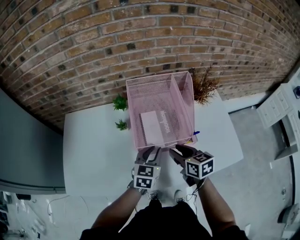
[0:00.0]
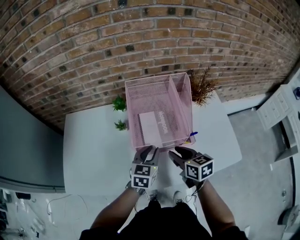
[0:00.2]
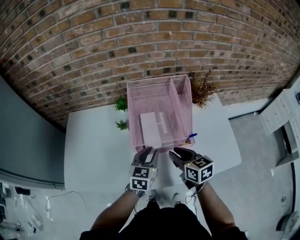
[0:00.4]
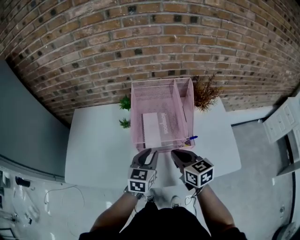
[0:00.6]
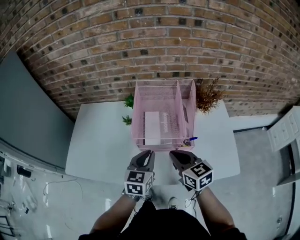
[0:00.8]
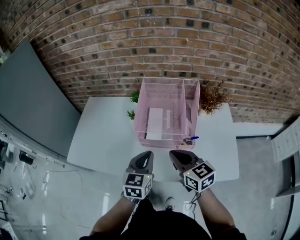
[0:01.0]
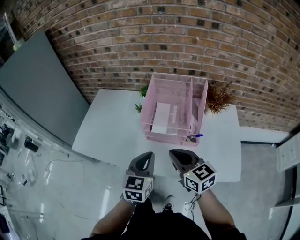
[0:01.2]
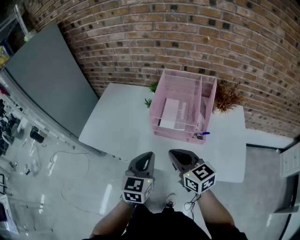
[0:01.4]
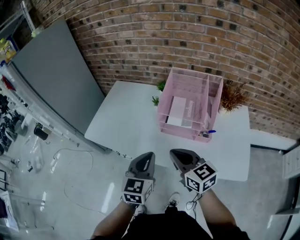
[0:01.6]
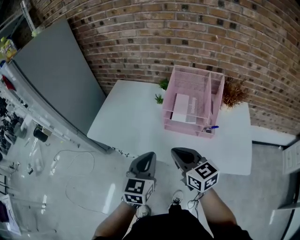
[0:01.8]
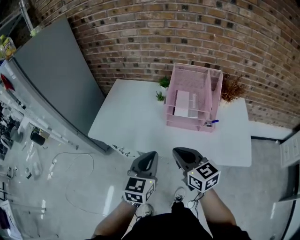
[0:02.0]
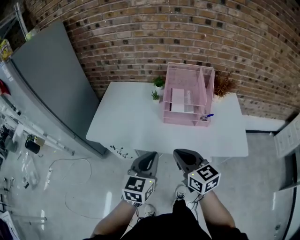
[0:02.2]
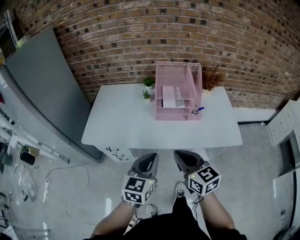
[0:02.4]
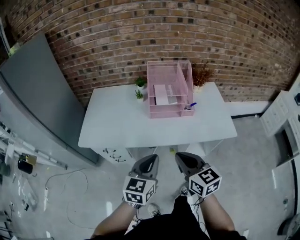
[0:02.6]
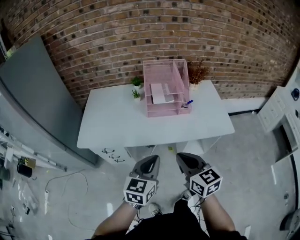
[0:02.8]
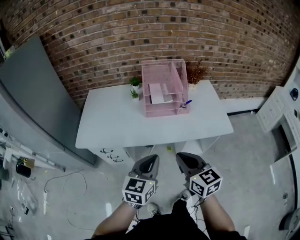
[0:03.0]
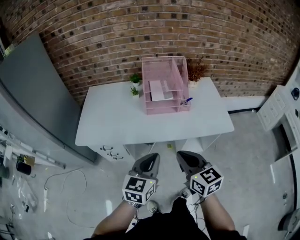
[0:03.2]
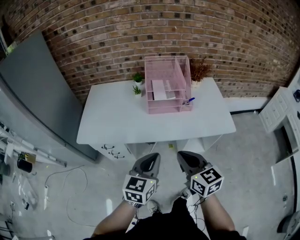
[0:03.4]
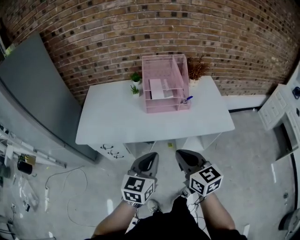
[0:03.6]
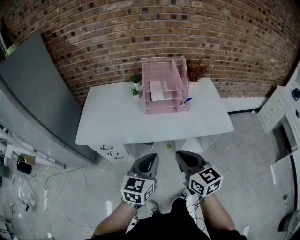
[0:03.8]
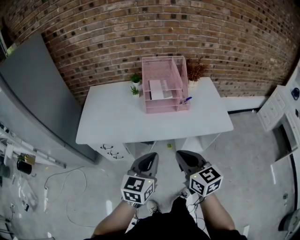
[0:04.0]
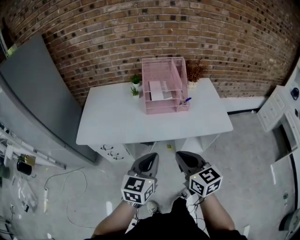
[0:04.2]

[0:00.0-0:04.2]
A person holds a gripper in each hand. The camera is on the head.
0:00.0 to 0:01.4: The right gripper moves approximately 15 cm, swivels some 40 degrees, and closes its fingers; the left gripper shifts by approximately 20 cm, swivels about 30 degrees, and closes its fingers.
0:01.4 to 0:02.8: The left gripper moves some 20 cm, and rotates some 30 degrees. Meanwhile the right gripper moves some 20 cm, and turns by roughly 30 degrees.
0:02.8 to 0:04.2: The grippers move only a little.

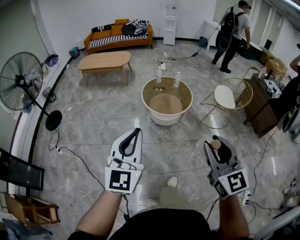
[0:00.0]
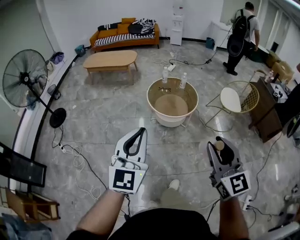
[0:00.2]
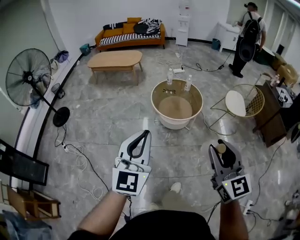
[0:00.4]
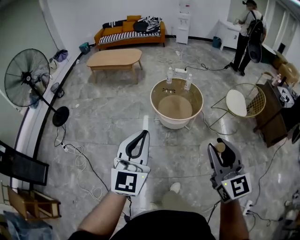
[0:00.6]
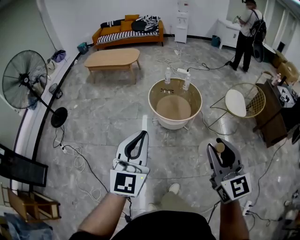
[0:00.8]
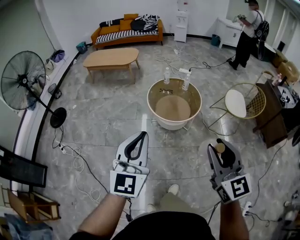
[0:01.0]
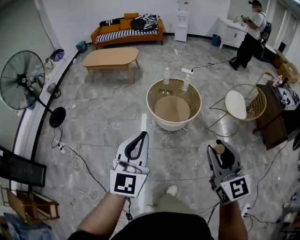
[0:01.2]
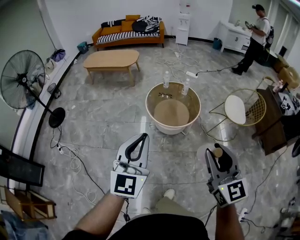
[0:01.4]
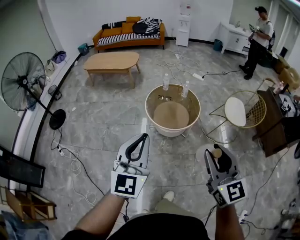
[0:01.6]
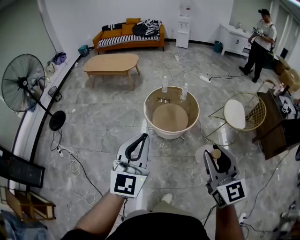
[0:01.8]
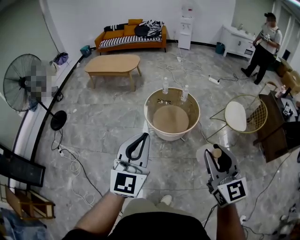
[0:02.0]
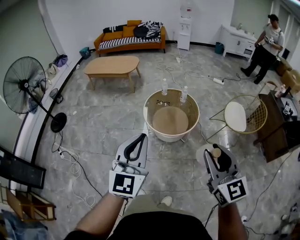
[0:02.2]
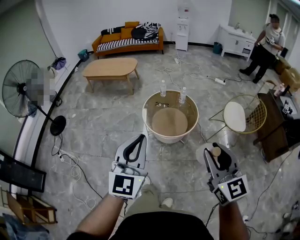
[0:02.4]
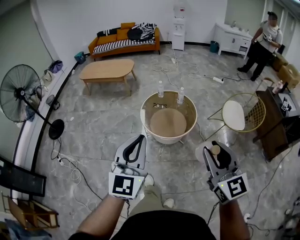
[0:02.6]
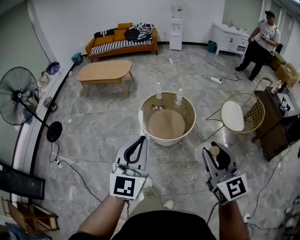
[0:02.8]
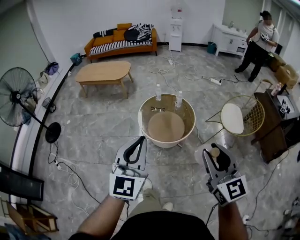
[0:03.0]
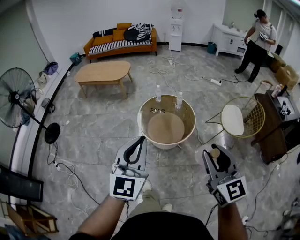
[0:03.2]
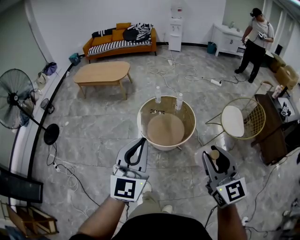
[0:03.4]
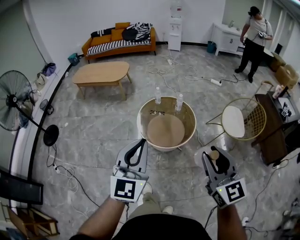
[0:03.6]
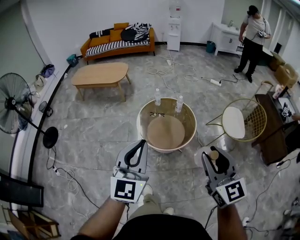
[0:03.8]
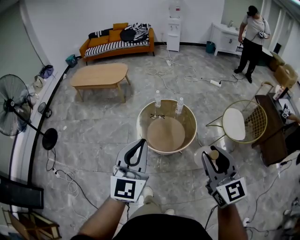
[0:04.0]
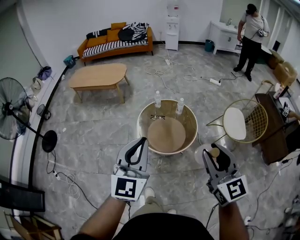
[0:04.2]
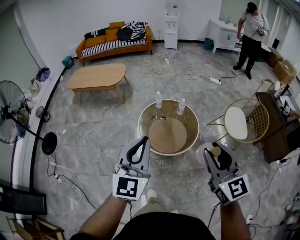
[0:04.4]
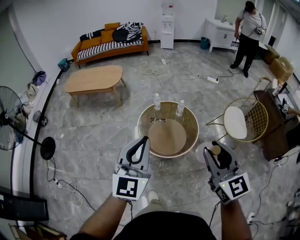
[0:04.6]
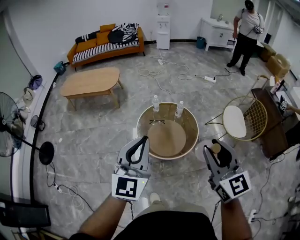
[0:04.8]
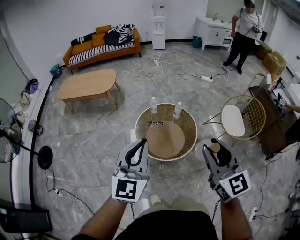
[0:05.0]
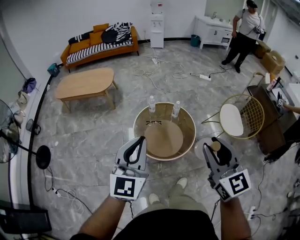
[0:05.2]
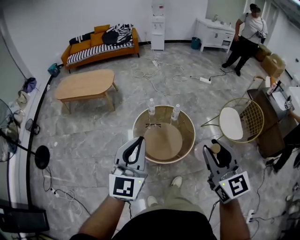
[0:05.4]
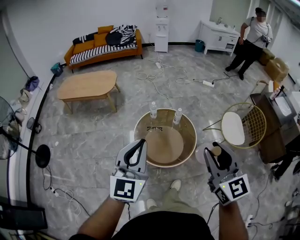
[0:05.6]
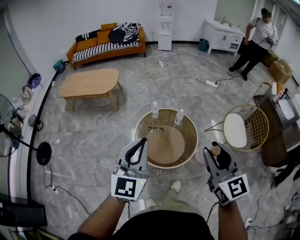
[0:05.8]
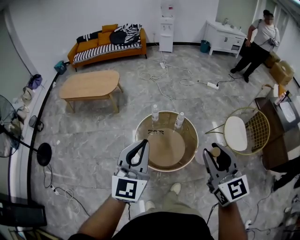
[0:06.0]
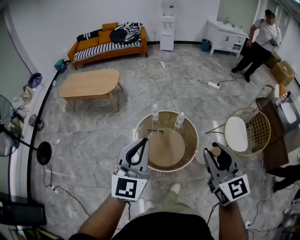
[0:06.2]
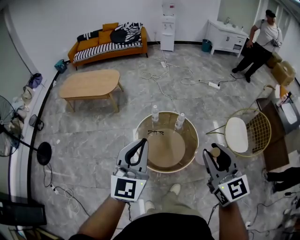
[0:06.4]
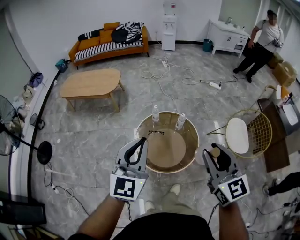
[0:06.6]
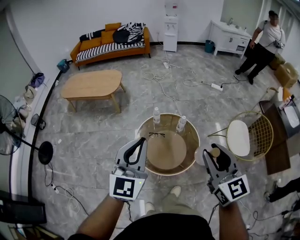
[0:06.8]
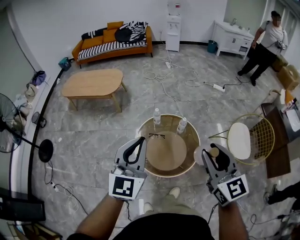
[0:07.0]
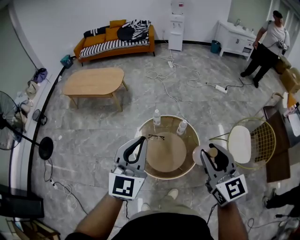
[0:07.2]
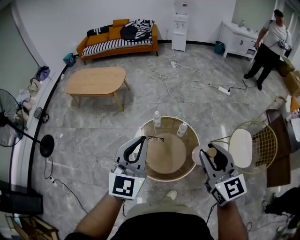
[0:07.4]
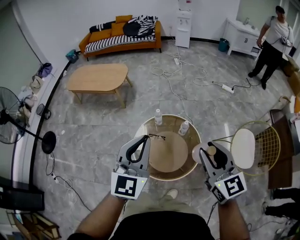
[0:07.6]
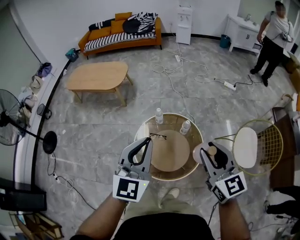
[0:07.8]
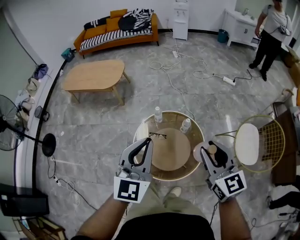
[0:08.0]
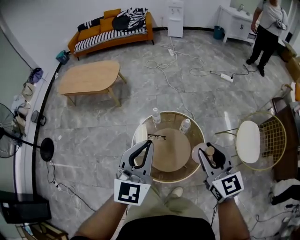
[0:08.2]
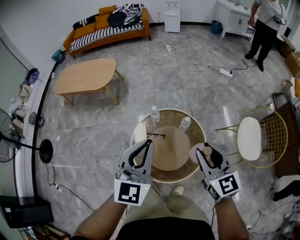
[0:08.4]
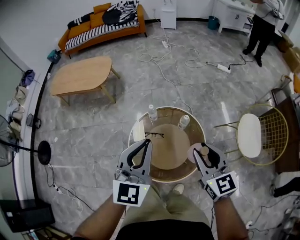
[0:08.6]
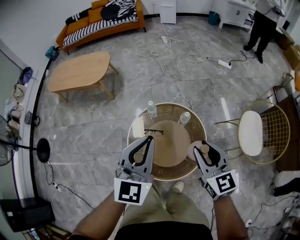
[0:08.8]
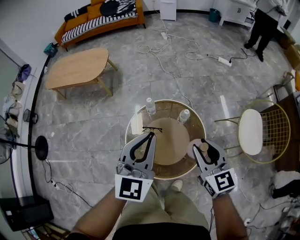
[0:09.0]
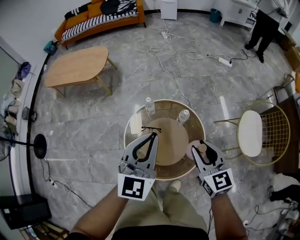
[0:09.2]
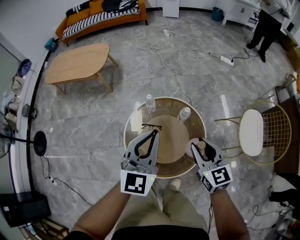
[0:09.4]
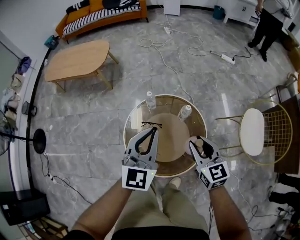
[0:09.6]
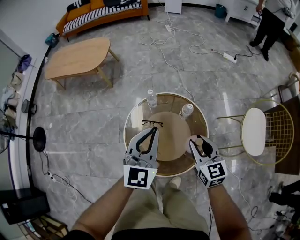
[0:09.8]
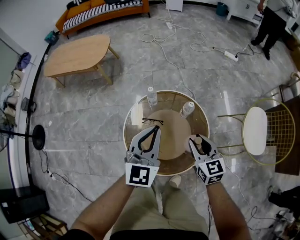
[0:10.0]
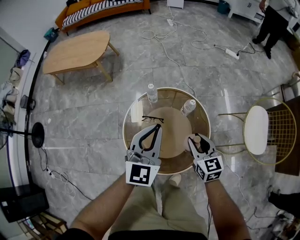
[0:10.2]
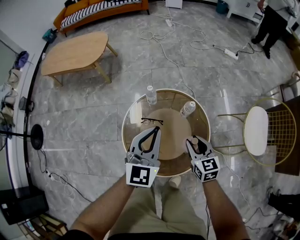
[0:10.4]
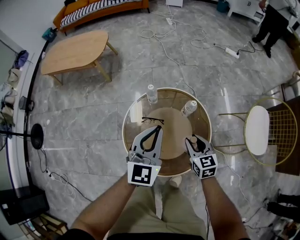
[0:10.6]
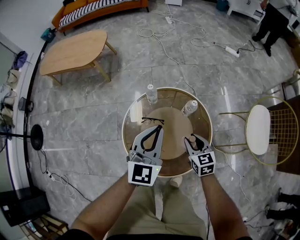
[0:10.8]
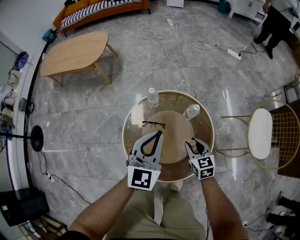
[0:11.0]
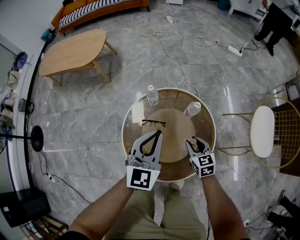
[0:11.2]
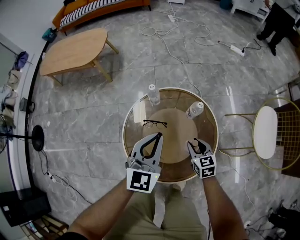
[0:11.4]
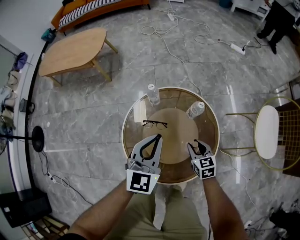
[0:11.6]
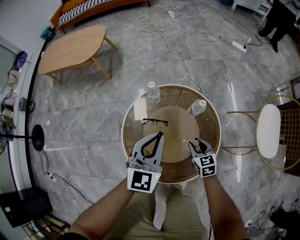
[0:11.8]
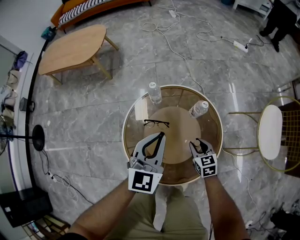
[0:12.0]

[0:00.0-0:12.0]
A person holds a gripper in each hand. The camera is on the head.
0:00.0 to 0:01.6: The right gripper goes approximately 15 cm forward, while the left gripper is displaced forward and to the right by about 20 cm.
0:01.6 to 0:03.0: The two grippers go some 10 cm forward and to the right.
0:03.0 to 0:04.4: Both grippers travel together forward, some 15 cm.
0:04.4 to 0:06.0: Both grippers move forward, roughly 15 cm.
0:06.0 to 0:07.6: The left gripper shifts some 15 cm forward and to the right. Meanwhile the right gripper travels forward, downward and to the right by about 15 cm.
0:07.6 to 0:09.0: Both grippers move downward and forward, roughly 20 cm.
0:09.0 to 0:10.4: The grippers both shift downward by roughly 20 cm.
0:10.4 to 0:12.0: The right gripper travels downward by roughly 20 cm. The left gripper goes roughly 10 cm downward.

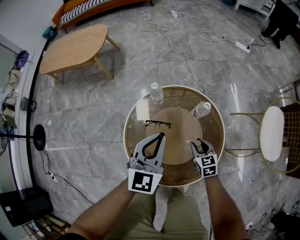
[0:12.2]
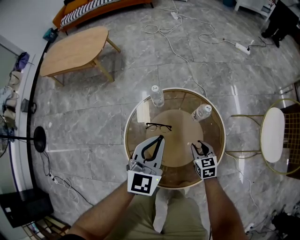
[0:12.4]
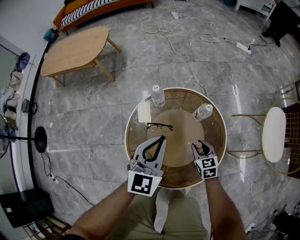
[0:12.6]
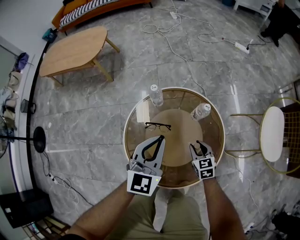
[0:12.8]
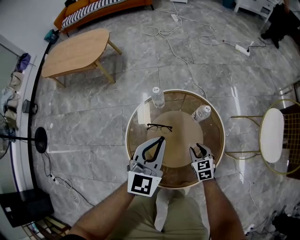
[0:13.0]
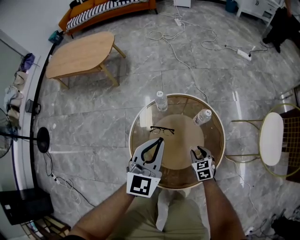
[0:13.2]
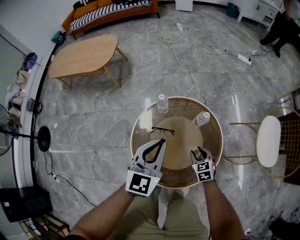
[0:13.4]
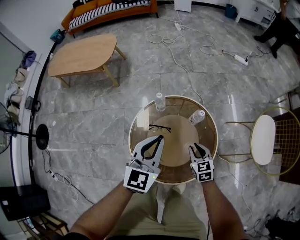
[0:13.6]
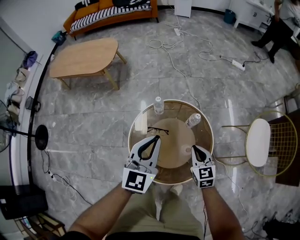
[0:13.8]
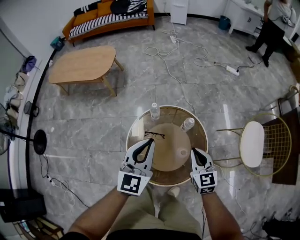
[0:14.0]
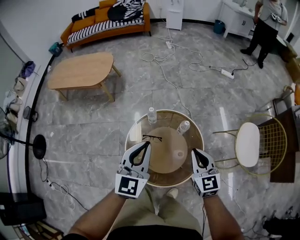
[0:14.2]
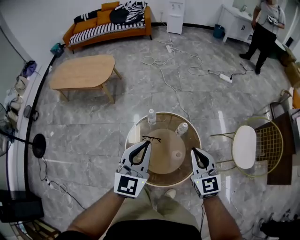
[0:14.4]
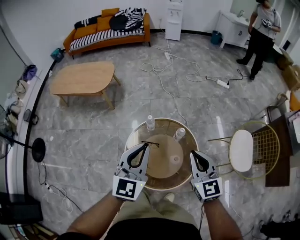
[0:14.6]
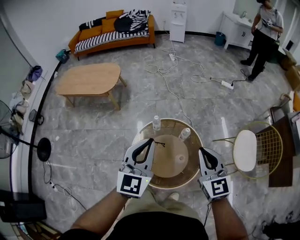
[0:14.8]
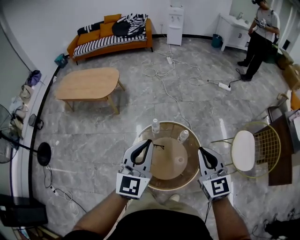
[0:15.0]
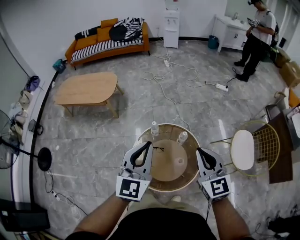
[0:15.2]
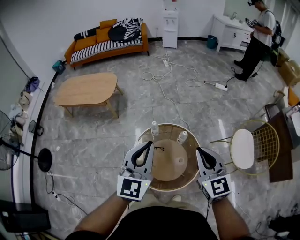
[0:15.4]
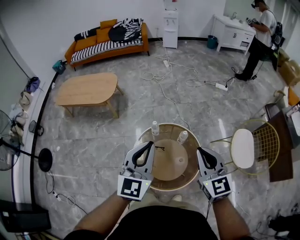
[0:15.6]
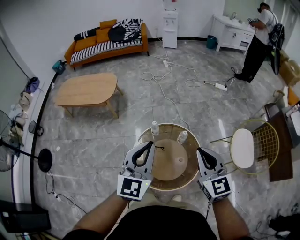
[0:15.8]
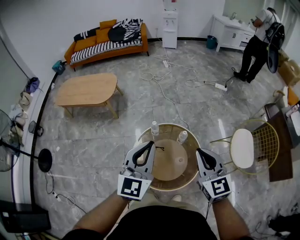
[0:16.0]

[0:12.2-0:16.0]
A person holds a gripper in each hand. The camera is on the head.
0:12.2 to 0:13.4: The left gripper shifts about 5 cm upward.
0:13.4 to 0:14.8: The right gripper heads upward, covering some 50 cm, angles its fingers upward, by roughly 30 degrees, and closes up; the left gripper moves upward, roughly 25 cm.
0:14.8 to 0:16.0: Both grippers move upward, roughly 5 cm.

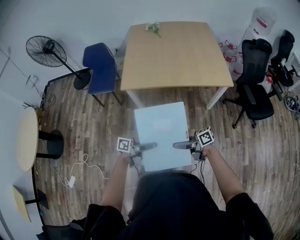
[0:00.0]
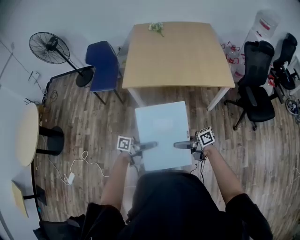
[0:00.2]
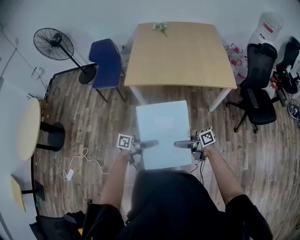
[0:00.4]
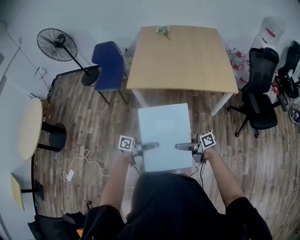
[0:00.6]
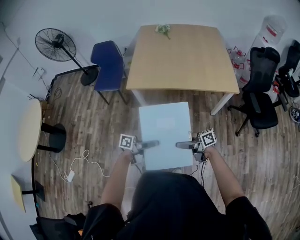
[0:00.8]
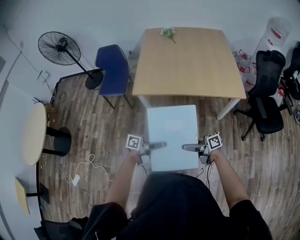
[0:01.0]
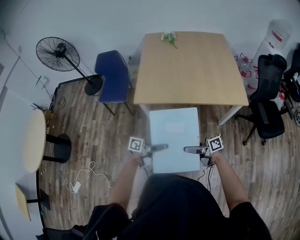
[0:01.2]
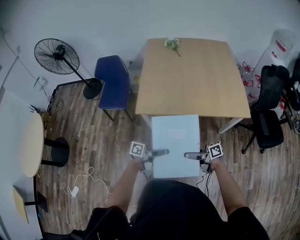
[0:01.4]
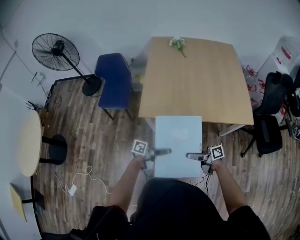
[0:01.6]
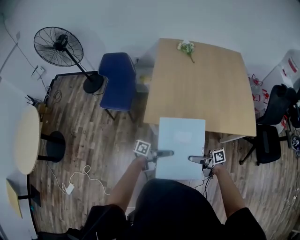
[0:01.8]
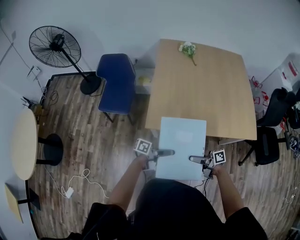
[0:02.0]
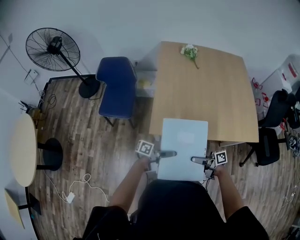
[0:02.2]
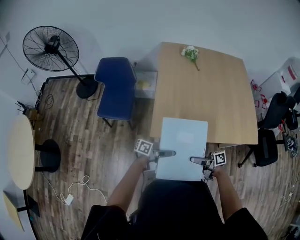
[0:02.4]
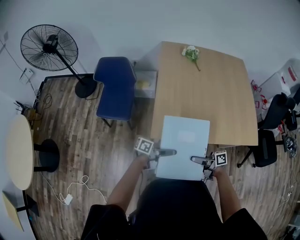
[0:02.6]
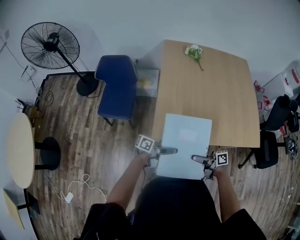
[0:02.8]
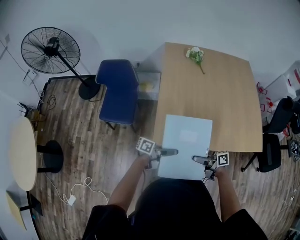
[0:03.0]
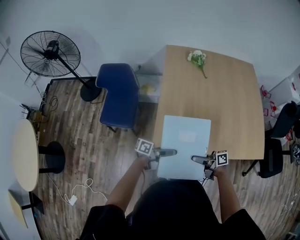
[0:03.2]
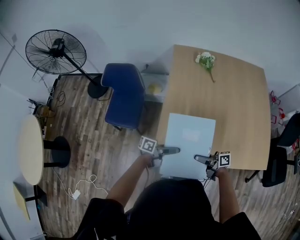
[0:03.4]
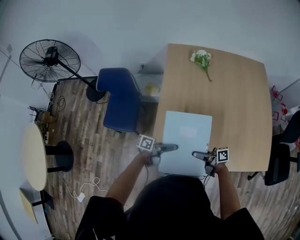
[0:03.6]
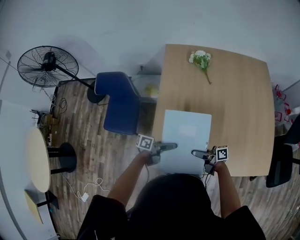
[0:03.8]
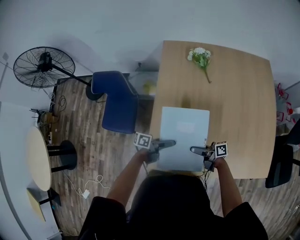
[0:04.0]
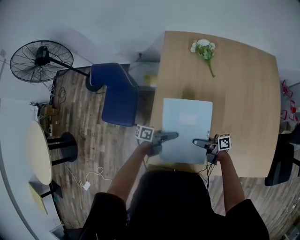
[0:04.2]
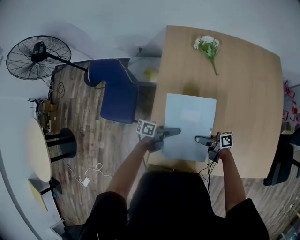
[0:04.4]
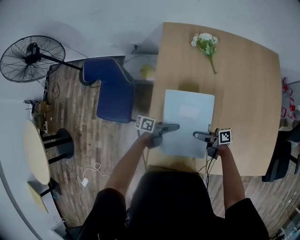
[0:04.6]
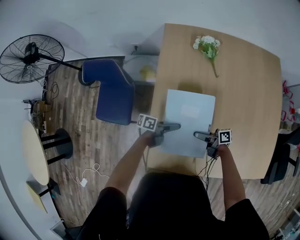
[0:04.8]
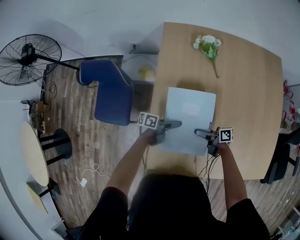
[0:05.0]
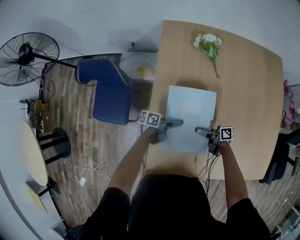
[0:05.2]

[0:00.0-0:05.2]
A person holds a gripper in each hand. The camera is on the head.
0:00.0 to 0:01.8: The right gripper ends up approximately 30 cm from where it was. Meanwhile the left gripper shifts by some 30 cm.
0:01.8 to 0:03.4: The right gripper moves about 35 cm; the left gripper shifts by approximately 35 cm.
0:03.4 to 0:05.2: The left gripper shifts by about 35 cm. The right gripper shifts by roughly 35 cm.
